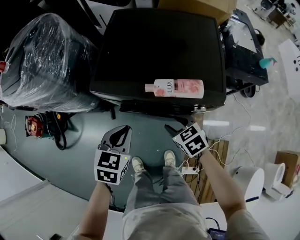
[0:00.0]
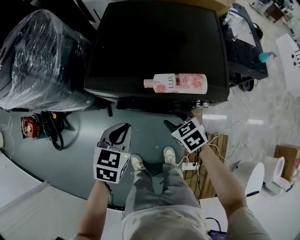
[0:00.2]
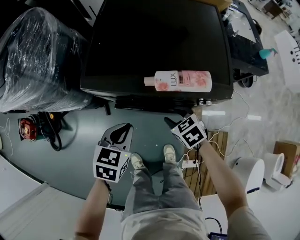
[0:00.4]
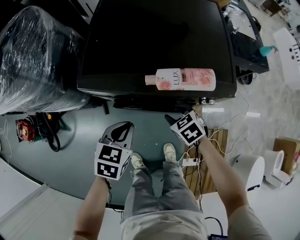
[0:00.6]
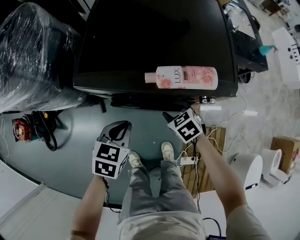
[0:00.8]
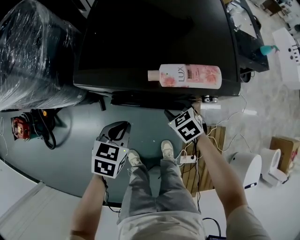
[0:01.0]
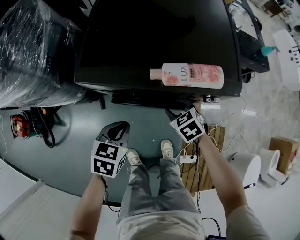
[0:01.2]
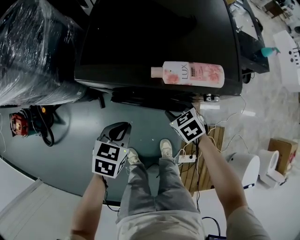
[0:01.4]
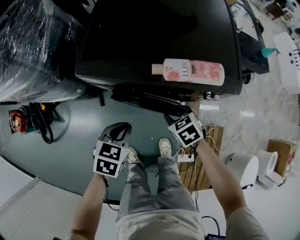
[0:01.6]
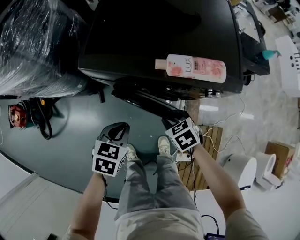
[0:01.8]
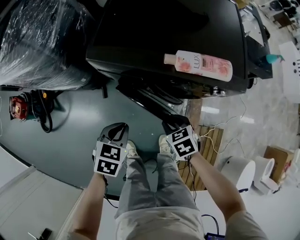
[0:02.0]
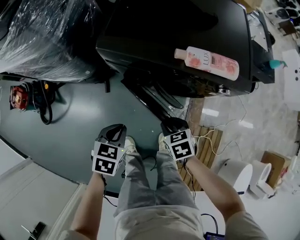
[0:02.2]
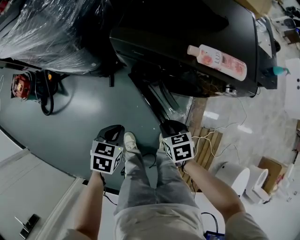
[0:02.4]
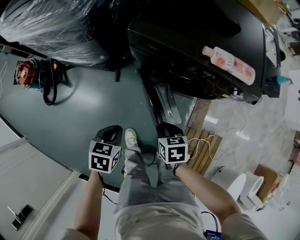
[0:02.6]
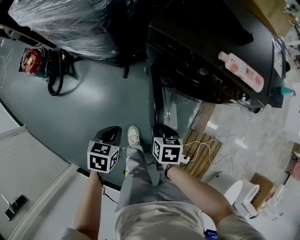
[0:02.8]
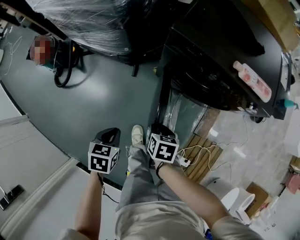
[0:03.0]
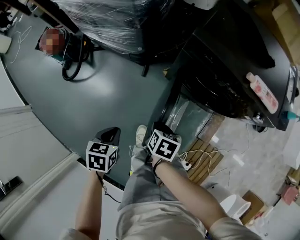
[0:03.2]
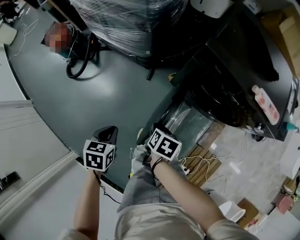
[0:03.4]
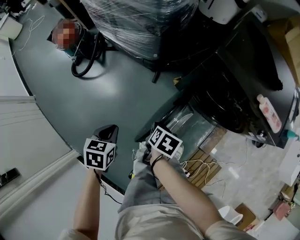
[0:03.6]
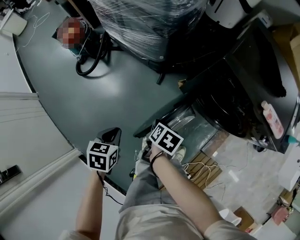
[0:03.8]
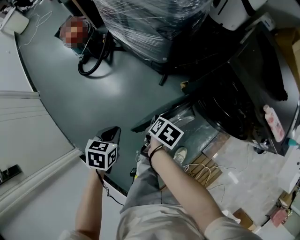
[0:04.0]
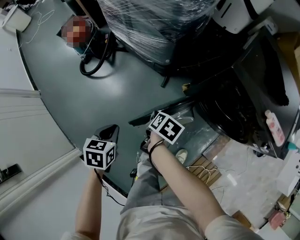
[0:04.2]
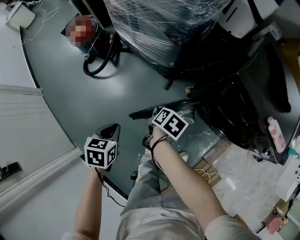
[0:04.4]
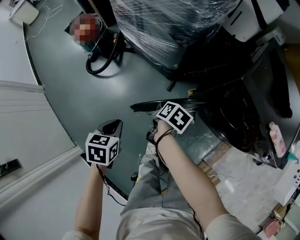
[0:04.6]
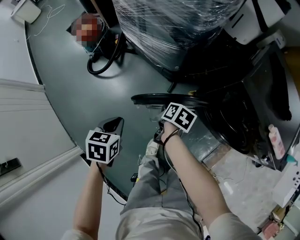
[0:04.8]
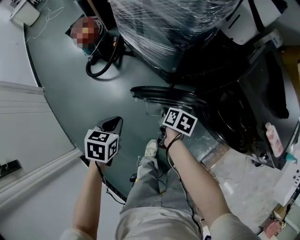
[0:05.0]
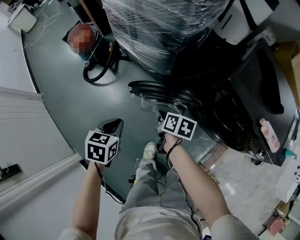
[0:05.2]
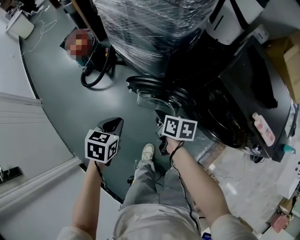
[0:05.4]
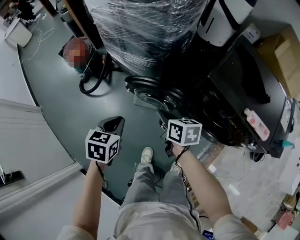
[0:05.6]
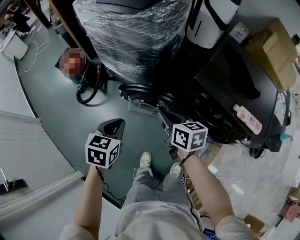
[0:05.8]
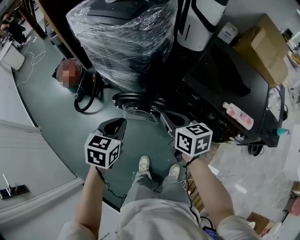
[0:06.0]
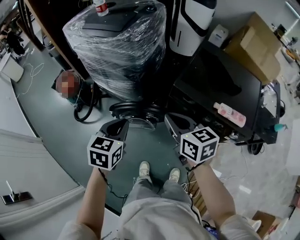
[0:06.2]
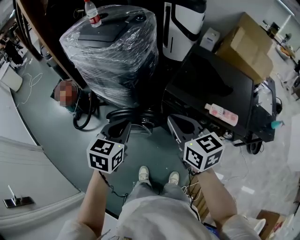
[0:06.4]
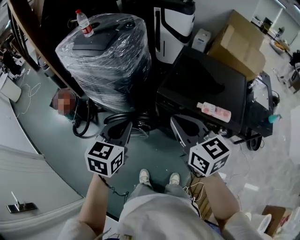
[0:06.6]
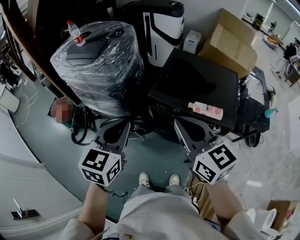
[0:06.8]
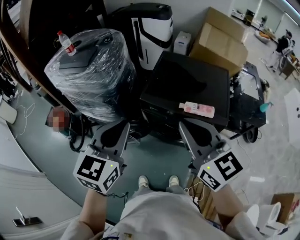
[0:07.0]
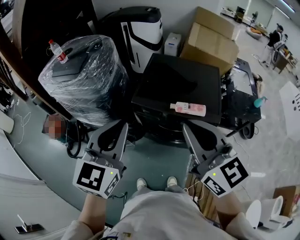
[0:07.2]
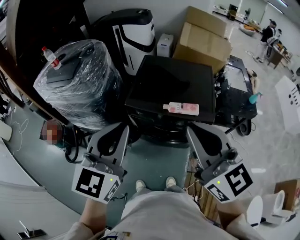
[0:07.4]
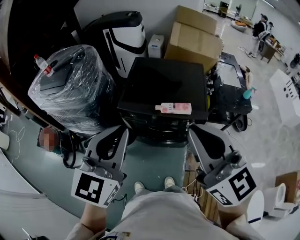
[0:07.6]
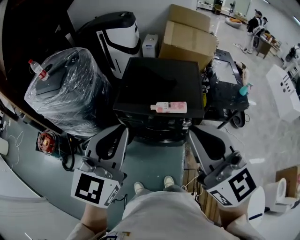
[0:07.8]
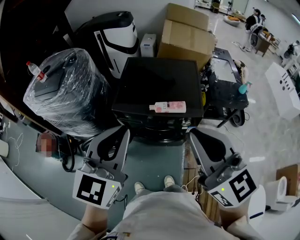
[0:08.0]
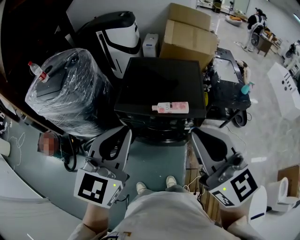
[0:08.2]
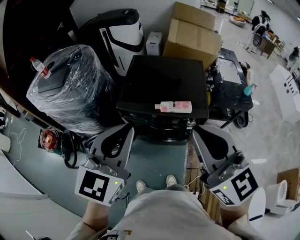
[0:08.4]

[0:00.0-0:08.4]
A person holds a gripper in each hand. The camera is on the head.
0:00.0 to 0:01.4: The grippers both shift downward by approximately 10 cm.
0:01.4 to 0:02.8: Both grippers move backward and to the left, some 25 cm. The left gripper swivels some 30 degrees, while the right gripper changes its angle by some 20 degrees.
0:02.8 to 0:04.2: The left gripper shifts approximately 25 cm to the left, and swivels about 20 degrees; the right gripper goes about 25 cm to the left and forward.
0:04.2 to 0:05.6: The right gripper travels upward by some 15 cm, swivels roughly 40 degrees, and closes up. Meanwhile the left gripper shifts roughly 15 cm upward, forward and to the right.
0:05.6 to 0:07.0: Both grippers travel together upward and to the right, approximately 50 cm. The right gripper tilts its fingers roughly 30 degrees upward. The left gripper tilts its fingers approximately 40 degrees upward.
0:07.0 to 0:08.4: The grippers both shift to the right and upward by some 15 cm.

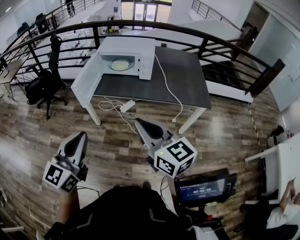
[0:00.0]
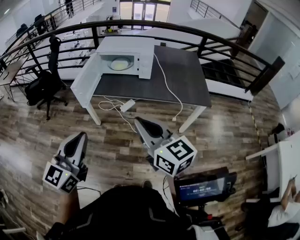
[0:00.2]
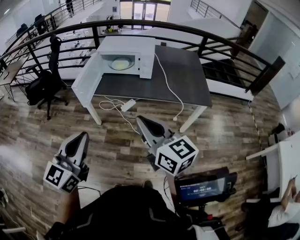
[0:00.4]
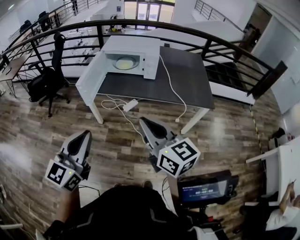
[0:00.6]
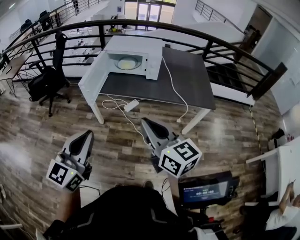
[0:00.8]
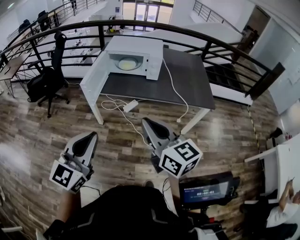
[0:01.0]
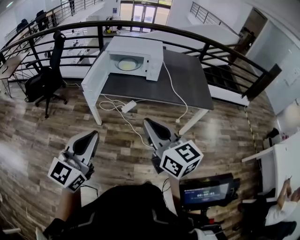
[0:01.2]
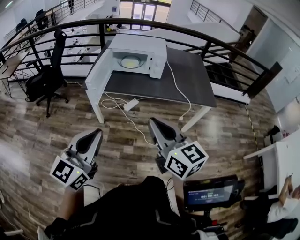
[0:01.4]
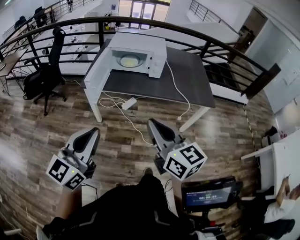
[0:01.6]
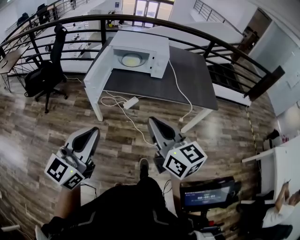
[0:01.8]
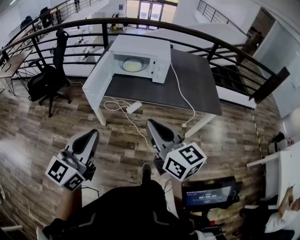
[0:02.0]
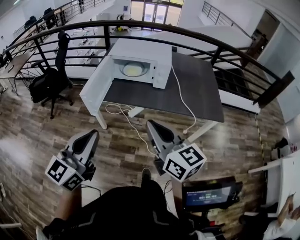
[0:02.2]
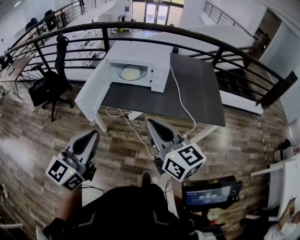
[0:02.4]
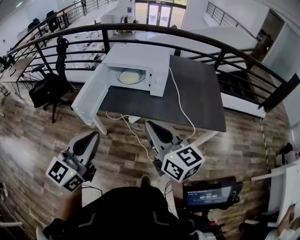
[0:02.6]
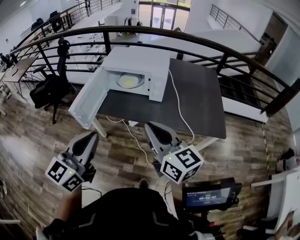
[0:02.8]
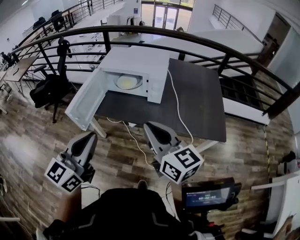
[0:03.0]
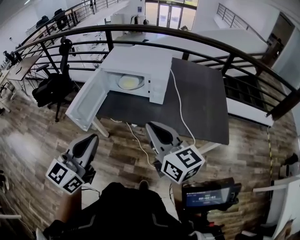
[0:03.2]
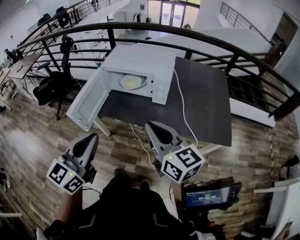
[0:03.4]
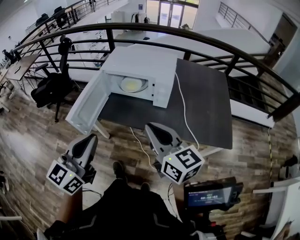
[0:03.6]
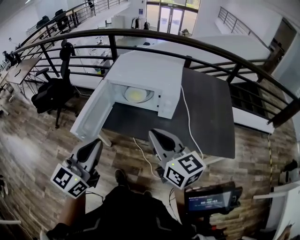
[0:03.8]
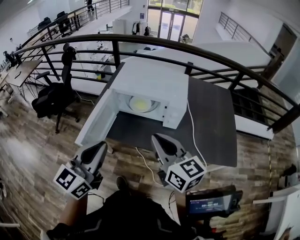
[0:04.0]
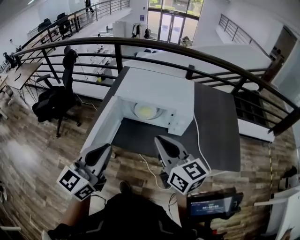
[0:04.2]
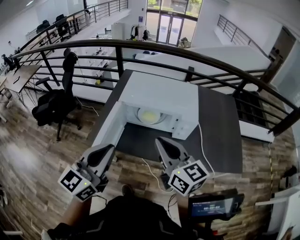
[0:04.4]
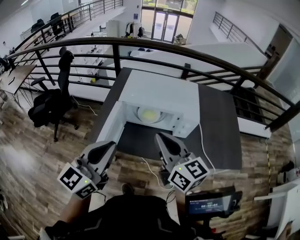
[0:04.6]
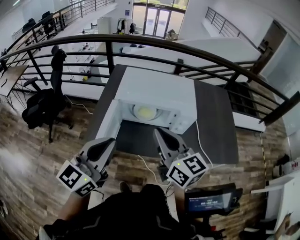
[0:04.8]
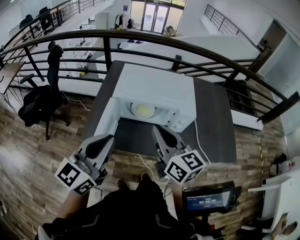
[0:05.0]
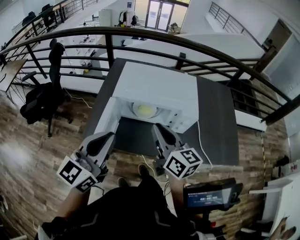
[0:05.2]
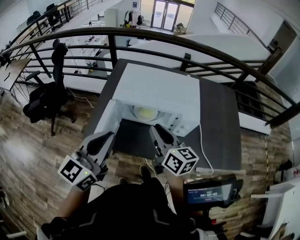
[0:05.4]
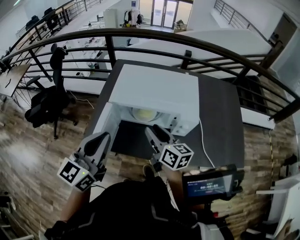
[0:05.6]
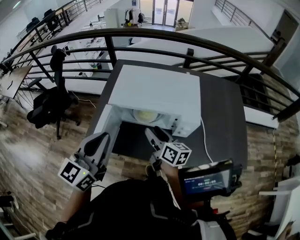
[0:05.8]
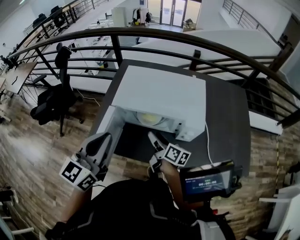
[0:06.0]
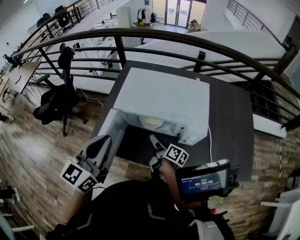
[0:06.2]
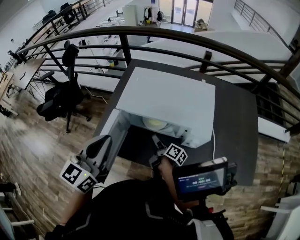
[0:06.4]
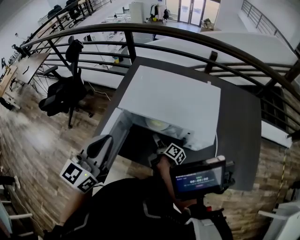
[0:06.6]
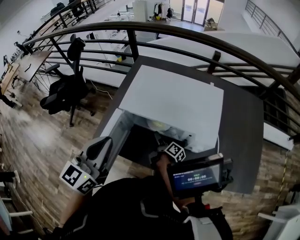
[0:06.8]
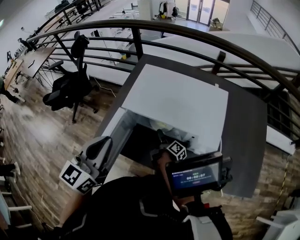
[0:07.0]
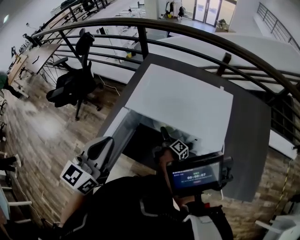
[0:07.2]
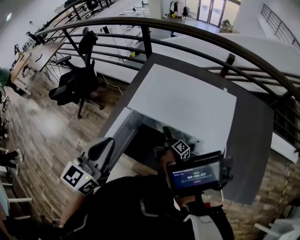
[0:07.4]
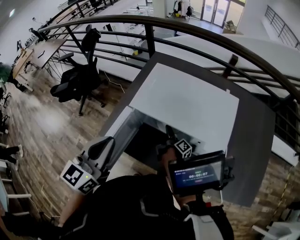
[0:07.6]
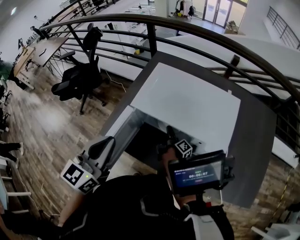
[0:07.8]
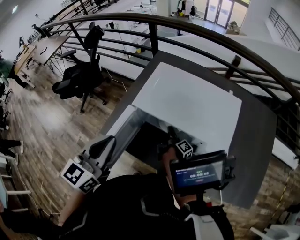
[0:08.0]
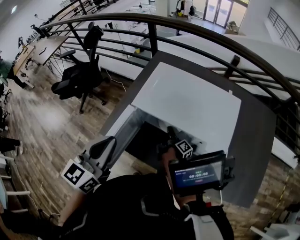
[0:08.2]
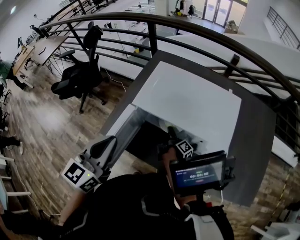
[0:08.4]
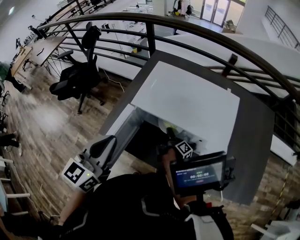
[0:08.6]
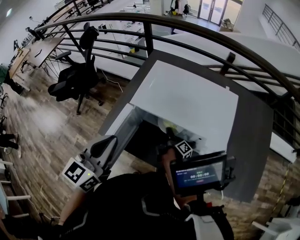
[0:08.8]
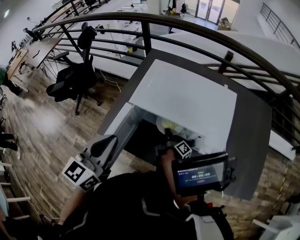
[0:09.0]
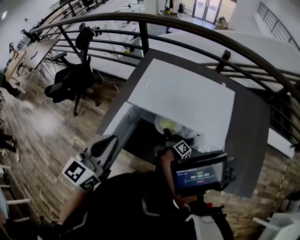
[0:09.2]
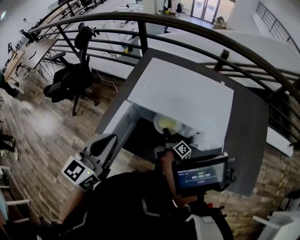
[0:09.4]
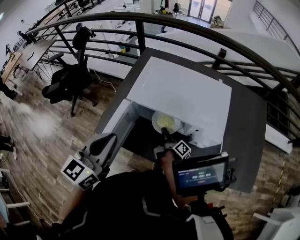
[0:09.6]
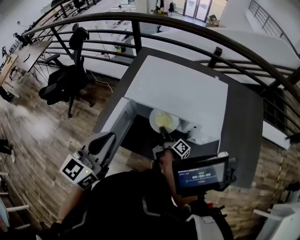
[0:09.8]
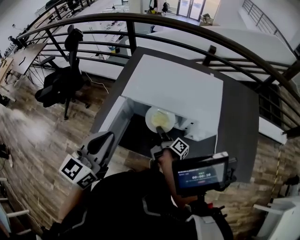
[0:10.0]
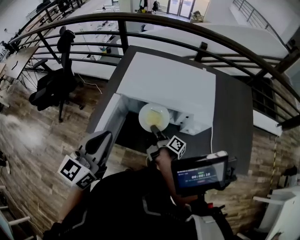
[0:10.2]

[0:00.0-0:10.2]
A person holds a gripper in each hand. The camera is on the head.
0:00.0 to 0:01.4: Both grippers move to the left, approximately 5 cm.
0:01.4 to 0:03.0: Both grippers travel together forward and to the right, roughly 25 cm.
0:03.0 to 0:04.4: The grippers both shift forward and to the left by about 25 cm.
0:04.4 to 0:05.8: The right gripper goes about 25 cm forward and downward, changes its angle by roughly 30 degrees, and opens up. The left gripper heads forward, covering about 15 cm.
0:05.8 to 0:07.2: The right gripper heads downward, covering roughly 20 cm, twists approximately 50 degrees clockwise, seen from behind, and opens up.
0:07.2 to 0:08.8: The right gripper closes its fingers.
0:08.8 to 0:10.2: The right gripper is displaced upward and backward by some 10 cm, and closes its fingers.

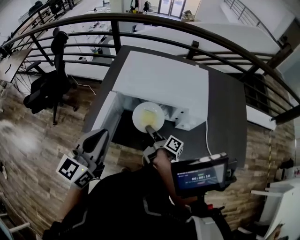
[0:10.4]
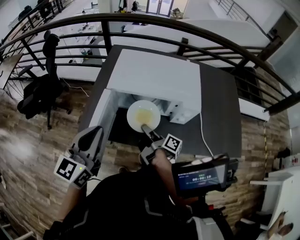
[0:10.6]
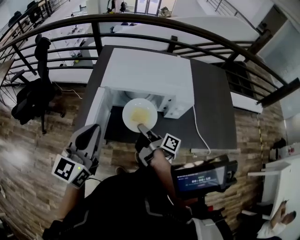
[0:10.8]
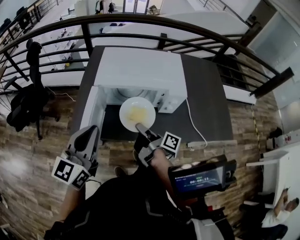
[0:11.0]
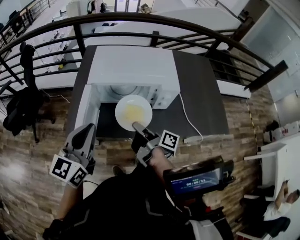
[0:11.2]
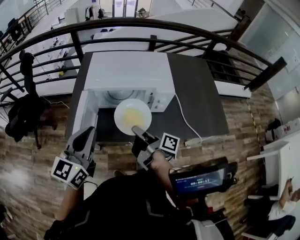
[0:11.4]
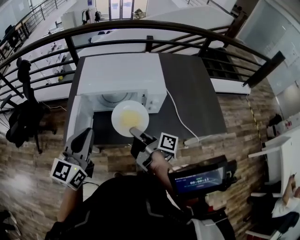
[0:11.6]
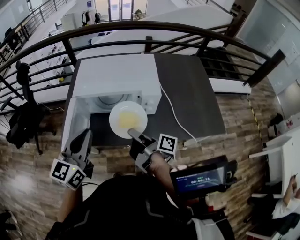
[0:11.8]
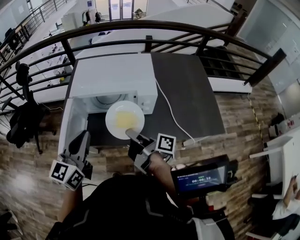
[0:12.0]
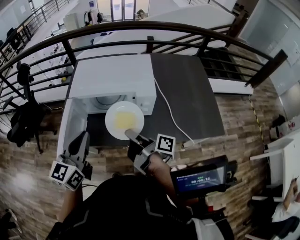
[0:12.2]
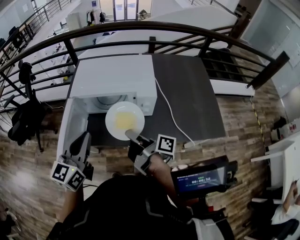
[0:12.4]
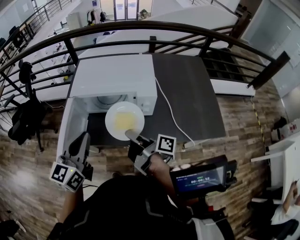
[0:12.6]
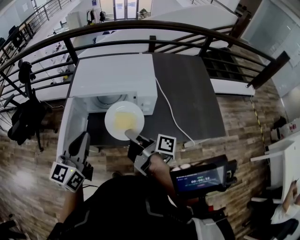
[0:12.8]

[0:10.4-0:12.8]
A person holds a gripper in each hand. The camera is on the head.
0:10.4 to 0:11.6: The left gripper shifts some 10 cm to the right; the right gripper travels upward, backward and to the right by approximately 20 cm.
0:11.6 to 0:12.8: There are only small adjustments of the grippers.

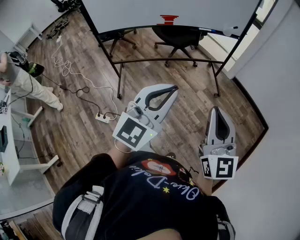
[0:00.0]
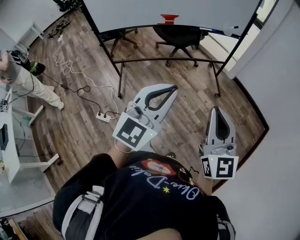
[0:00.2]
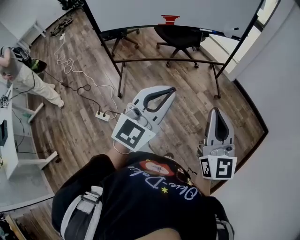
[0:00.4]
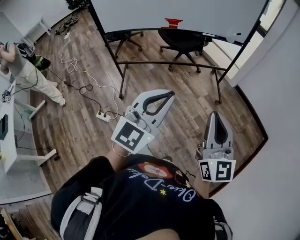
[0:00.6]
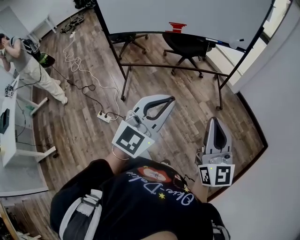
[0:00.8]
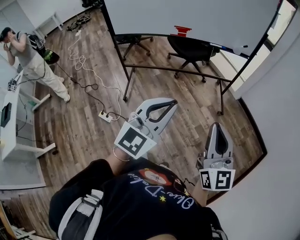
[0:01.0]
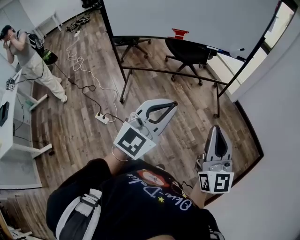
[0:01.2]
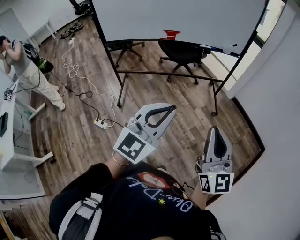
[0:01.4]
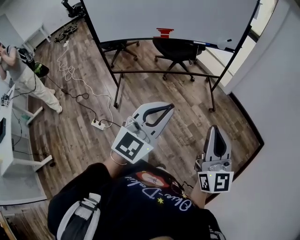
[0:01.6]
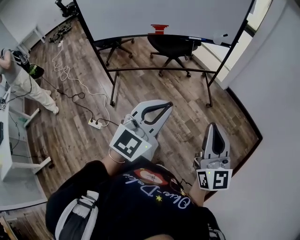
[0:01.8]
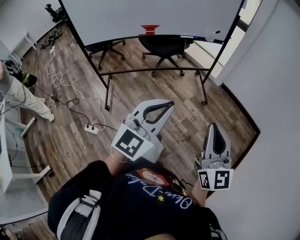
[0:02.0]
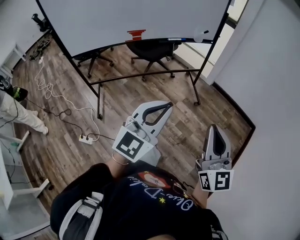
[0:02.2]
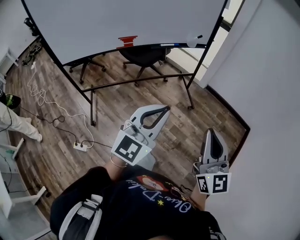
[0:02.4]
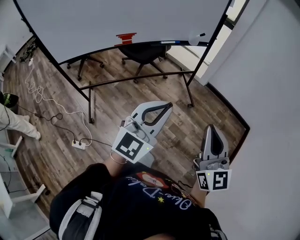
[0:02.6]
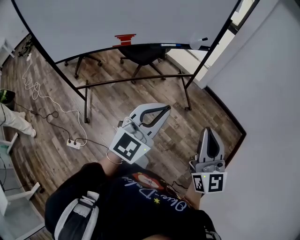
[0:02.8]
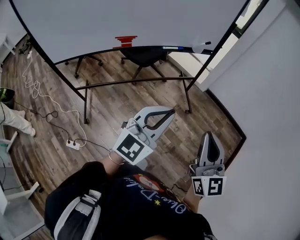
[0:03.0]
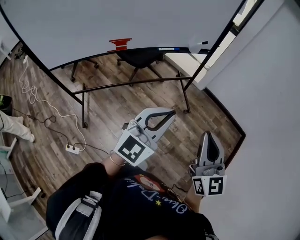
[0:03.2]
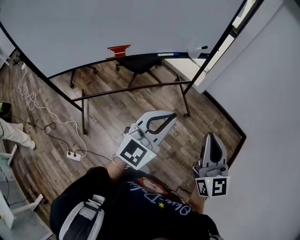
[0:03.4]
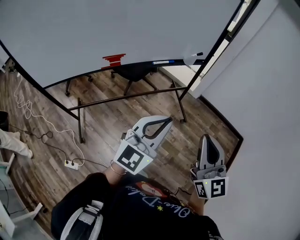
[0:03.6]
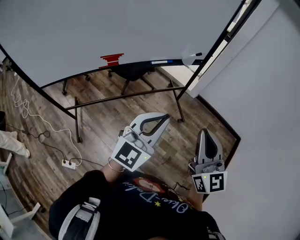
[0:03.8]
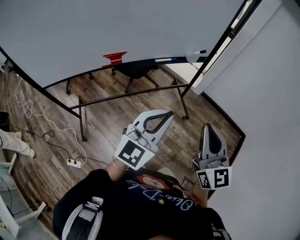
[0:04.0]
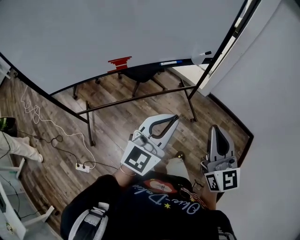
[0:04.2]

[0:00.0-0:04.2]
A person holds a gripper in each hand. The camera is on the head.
0:00.0 to 0:01.4: Both grippers travel together to the right, some 10 cm.
0:01.4 to 0:02.8: Both grippers travel together forward, about 20 cm.
0:02.8 to 0:04.2: The left gripper goes about 15 cm forward; the right gripper travels forward and to the left by some 15 cm.
